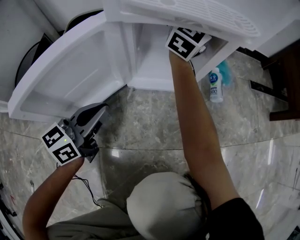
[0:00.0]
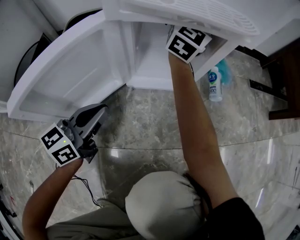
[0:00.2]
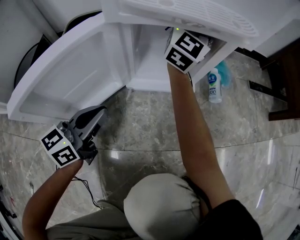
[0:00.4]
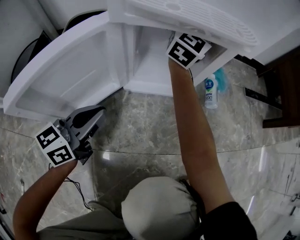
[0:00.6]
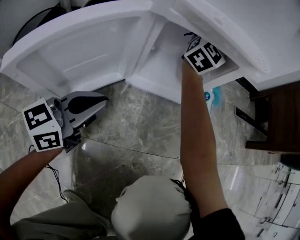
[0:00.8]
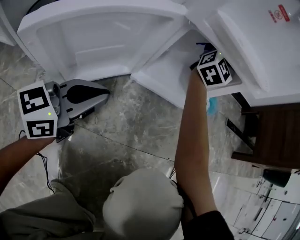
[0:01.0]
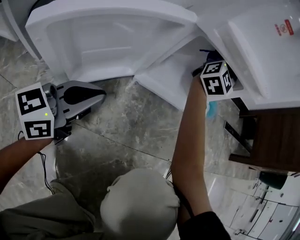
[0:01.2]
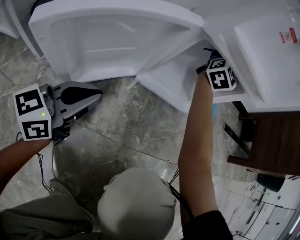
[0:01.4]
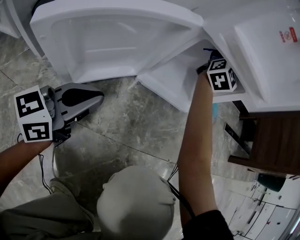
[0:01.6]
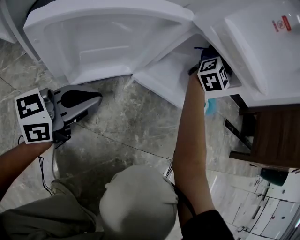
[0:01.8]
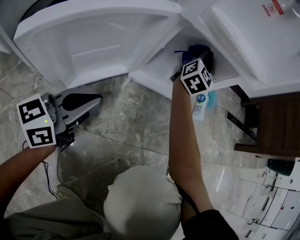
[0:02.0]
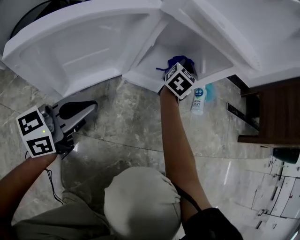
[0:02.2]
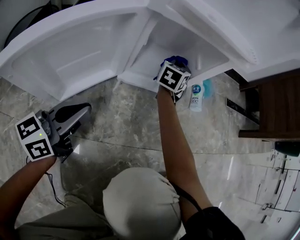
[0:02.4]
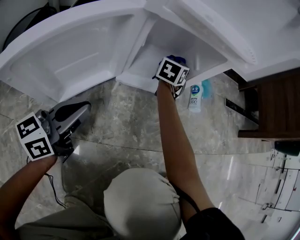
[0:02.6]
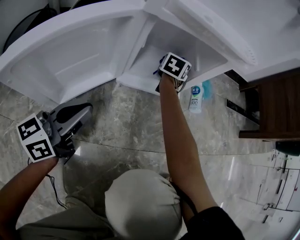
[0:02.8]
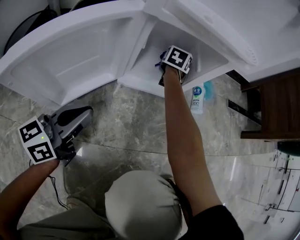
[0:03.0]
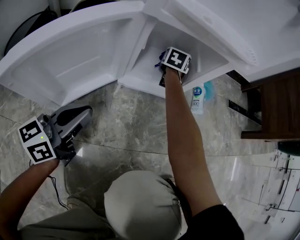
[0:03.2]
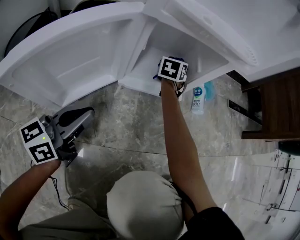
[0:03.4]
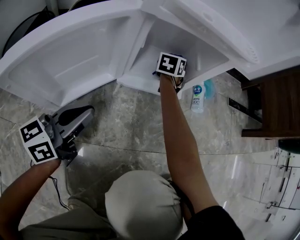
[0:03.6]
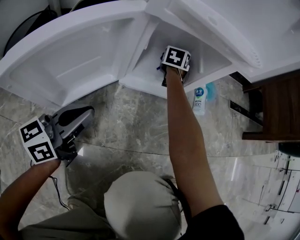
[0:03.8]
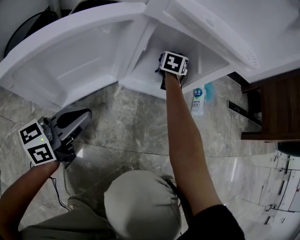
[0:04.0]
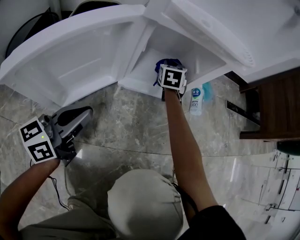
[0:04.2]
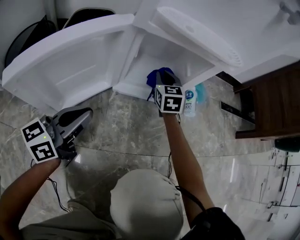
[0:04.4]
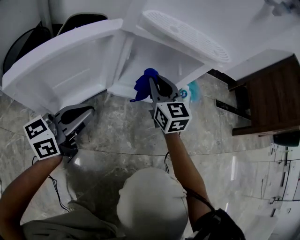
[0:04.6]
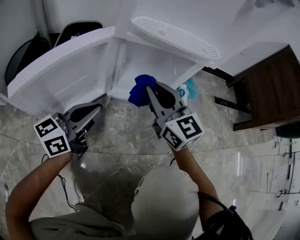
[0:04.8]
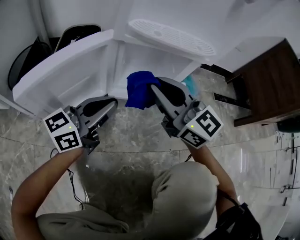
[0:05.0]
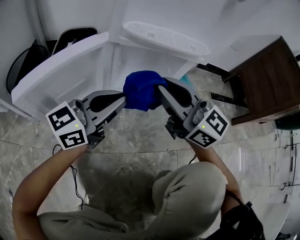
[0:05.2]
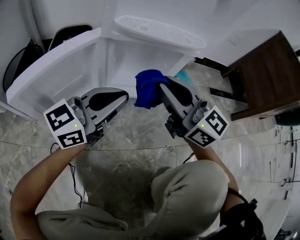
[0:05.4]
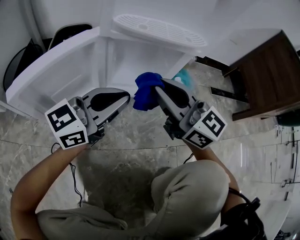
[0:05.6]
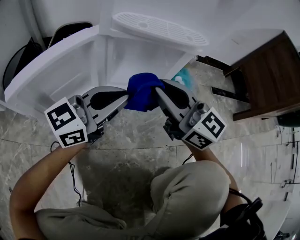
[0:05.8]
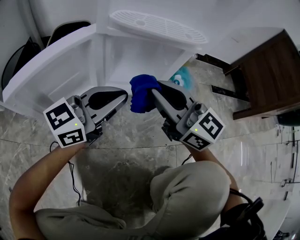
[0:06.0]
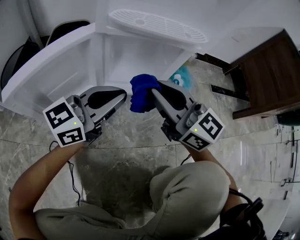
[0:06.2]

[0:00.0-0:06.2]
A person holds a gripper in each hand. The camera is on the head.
0:00.0 to 0:01.6: The left gripper is displaced backward by approximately 5 cm.
0:01.6 to 0:03.2: The right gripper moves downward, some 25 cm, and points its fingers about 50 degrees further downward.
0:03.2 to 0:04.6: The right gripper travels backward and upward by roughly 20 cm, and changes its angle by about 40 degrees.
0:04.6 to 0:06.2: The left gripper shifts about 15 cm to the right and upward. Meanwhile the right gripper travels upward and backward by approximately 20 cm, and turns by some 30 degrees.

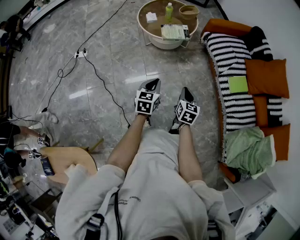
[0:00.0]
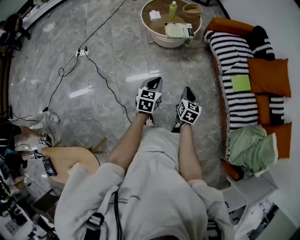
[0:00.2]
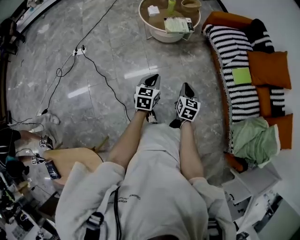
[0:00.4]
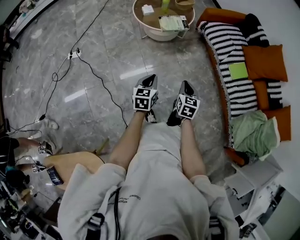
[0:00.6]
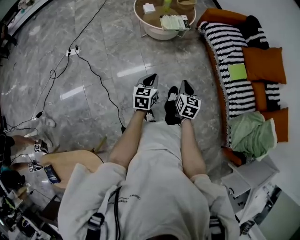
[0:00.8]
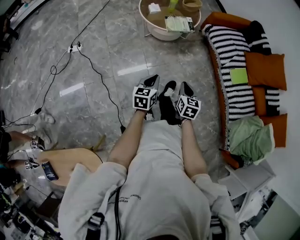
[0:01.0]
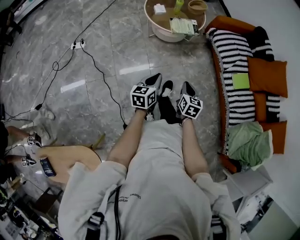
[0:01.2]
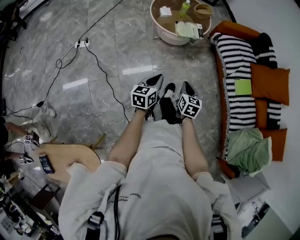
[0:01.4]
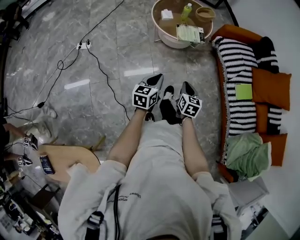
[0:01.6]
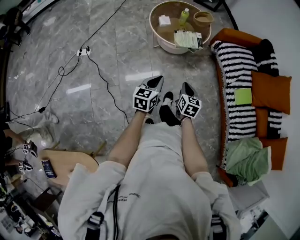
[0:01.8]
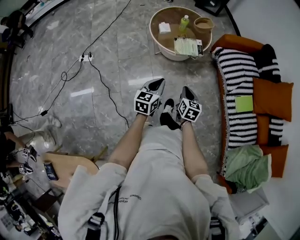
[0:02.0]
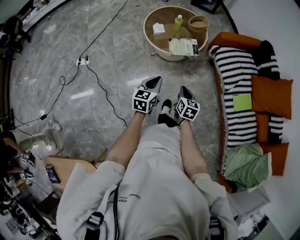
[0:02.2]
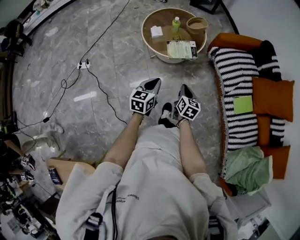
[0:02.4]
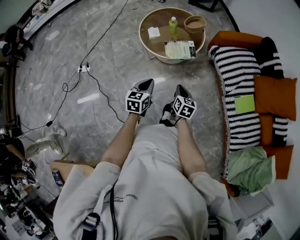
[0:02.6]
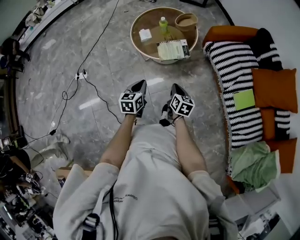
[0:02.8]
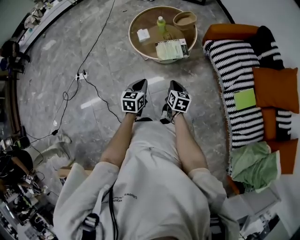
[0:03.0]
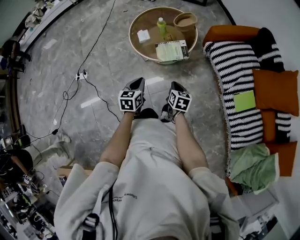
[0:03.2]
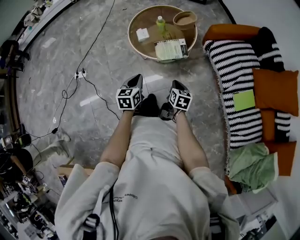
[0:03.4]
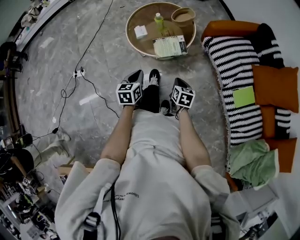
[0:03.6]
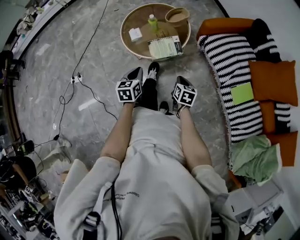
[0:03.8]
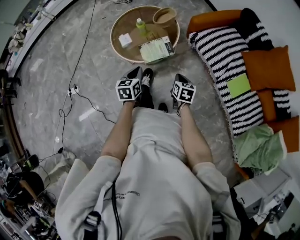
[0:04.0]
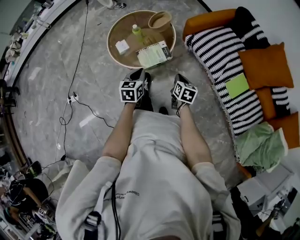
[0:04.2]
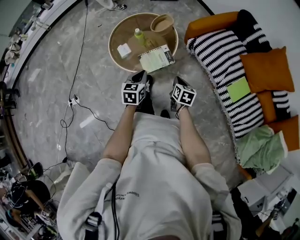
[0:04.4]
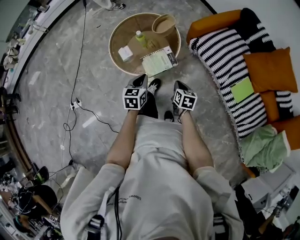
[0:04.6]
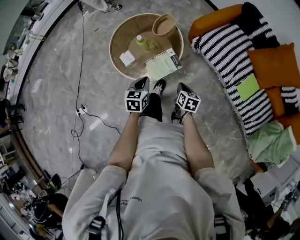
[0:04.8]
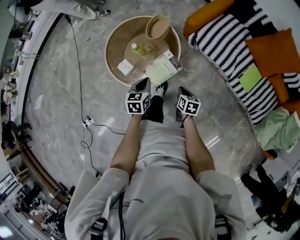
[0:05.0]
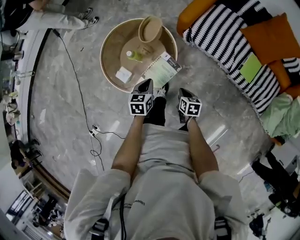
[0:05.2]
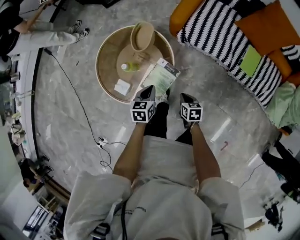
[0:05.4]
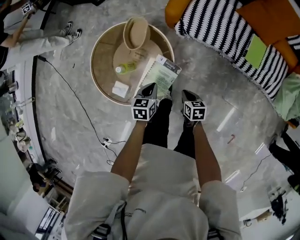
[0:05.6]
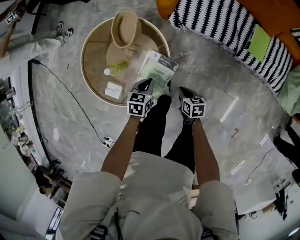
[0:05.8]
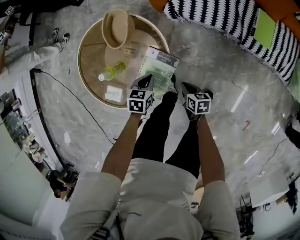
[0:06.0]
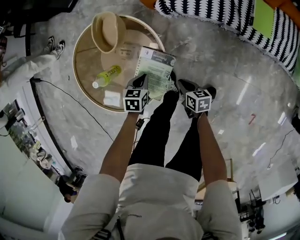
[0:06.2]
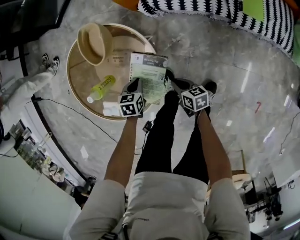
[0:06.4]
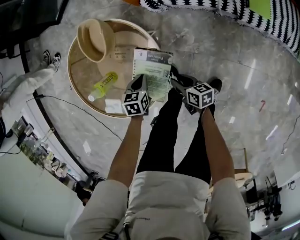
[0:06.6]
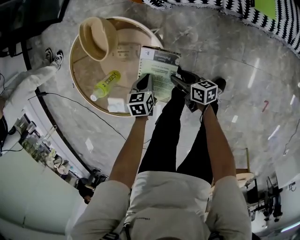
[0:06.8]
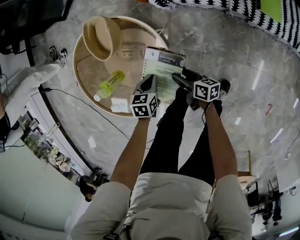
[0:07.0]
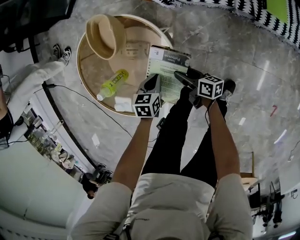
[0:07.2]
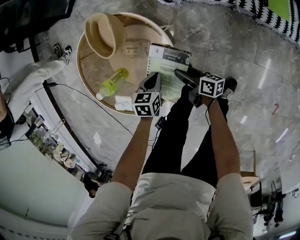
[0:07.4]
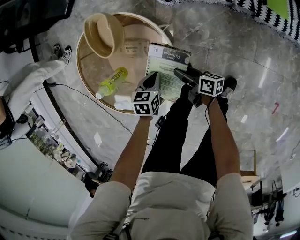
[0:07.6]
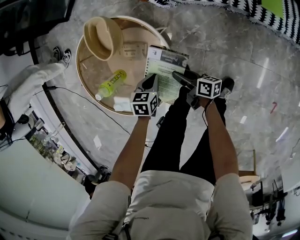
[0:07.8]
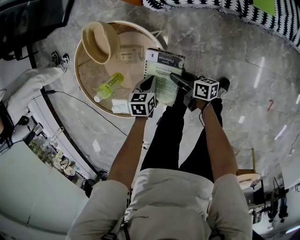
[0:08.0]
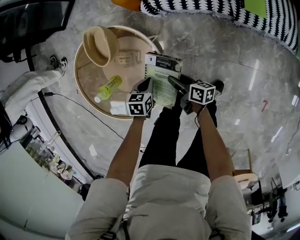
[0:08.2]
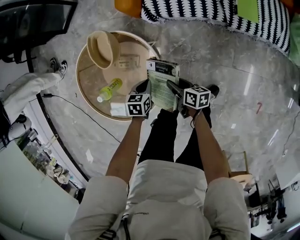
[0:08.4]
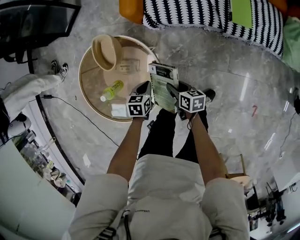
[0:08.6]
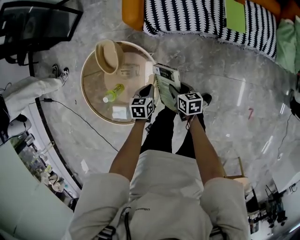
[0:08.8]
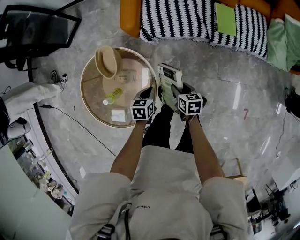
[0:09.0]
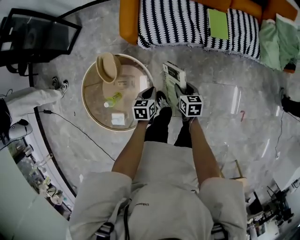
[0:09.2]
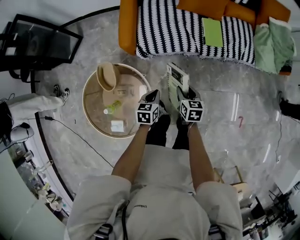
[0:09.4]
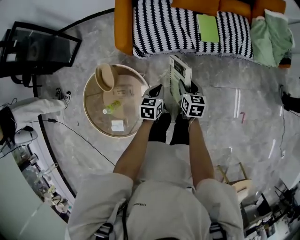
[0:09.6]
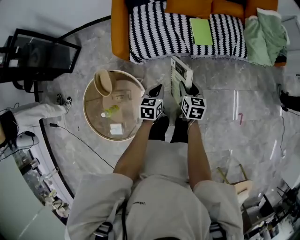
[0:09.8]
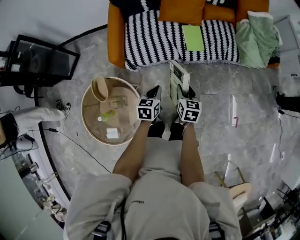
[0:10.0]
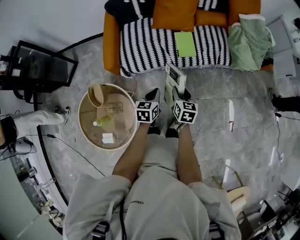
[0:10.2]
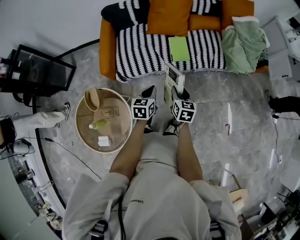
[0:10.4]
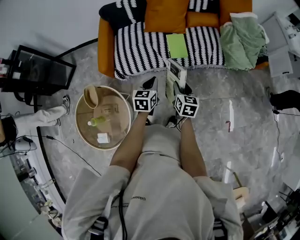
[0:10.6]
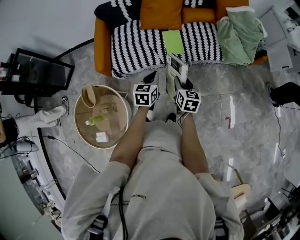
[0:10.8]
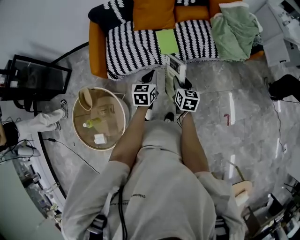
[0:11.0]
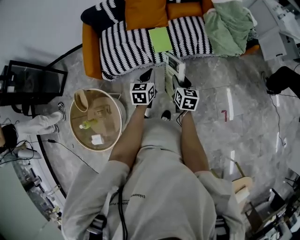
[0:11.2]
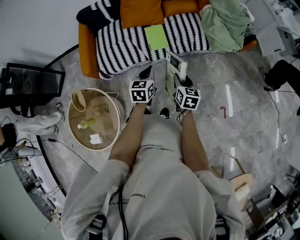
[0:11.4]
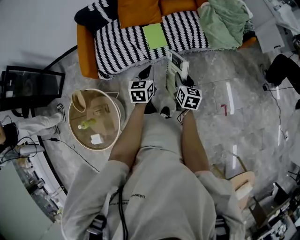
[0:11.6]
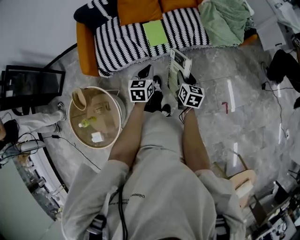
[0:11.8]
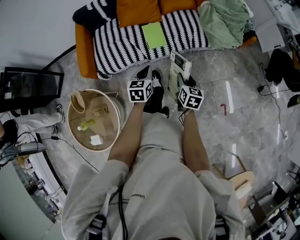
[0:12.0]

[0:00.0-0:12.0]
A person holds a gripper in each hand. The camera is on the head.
0:00.0 to 0:01.6: Both grippers move to the left, roughly 15 cm.
0:01.6 to 0:03.0: The two grippers go approximately 20 cm forward.
0:03.0 to 0:04.4: The left gripper travels forward by approximately 15 cm, while the right gripper heads forward and to the right, covering some 15 cm.
0:04.4 to 0:06.0: Both grippers move downward, approximately 25 cm. The left gripper changes its angle by about 50 degrees, while the right gripper swivels about 30 degrees.
0:06.0 to 0:07.6: The right gripper heads forward and to the left, covering some 10 cm, angles its fingers upward, by about 30 degrees, and opens, while the left gripper shifts about 5 cm downward.
0:07.6 to 0:09.0: The grippers both shift upward and to the right by some 15 cm. The right gripper points its fingers some 30 degrees further downward.
0:09.0 to 0:10.4: Both grippers travel together to the right, upward and forward, about 35 cm. The left gripper turns by some 20 degrees, while the right gripper turns by some 30 degrees.
0:10.4 to 0:12.0: The right gripper travels to the right by approximately 20 cm, while the left gripper moves to the right and forward, about 15 cm.

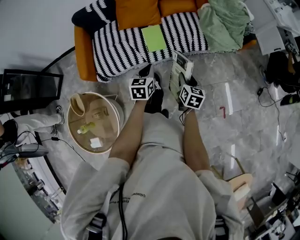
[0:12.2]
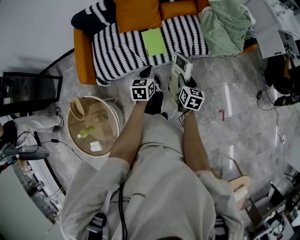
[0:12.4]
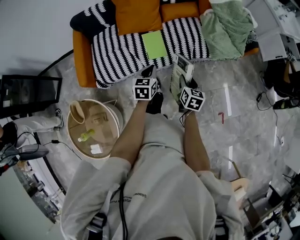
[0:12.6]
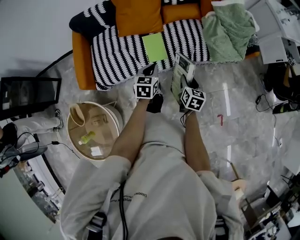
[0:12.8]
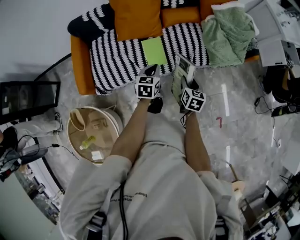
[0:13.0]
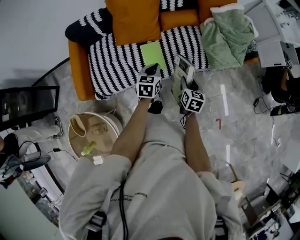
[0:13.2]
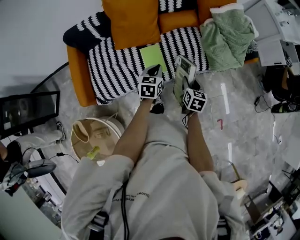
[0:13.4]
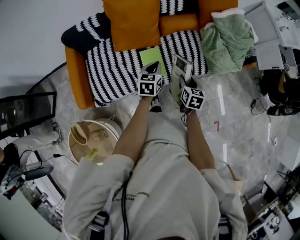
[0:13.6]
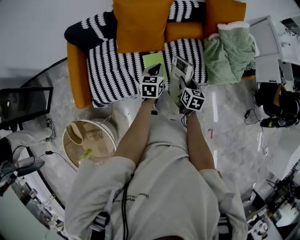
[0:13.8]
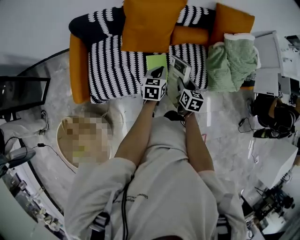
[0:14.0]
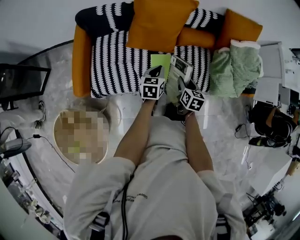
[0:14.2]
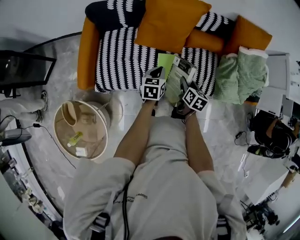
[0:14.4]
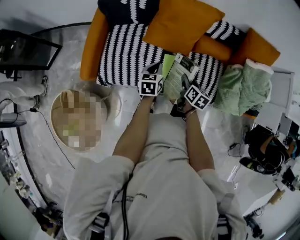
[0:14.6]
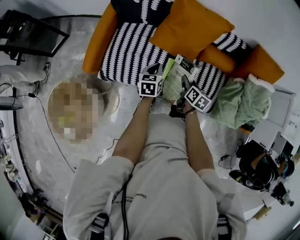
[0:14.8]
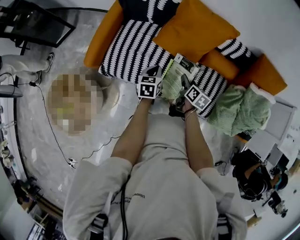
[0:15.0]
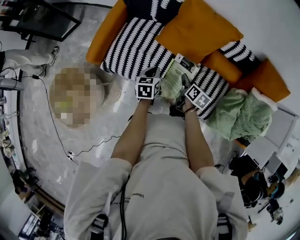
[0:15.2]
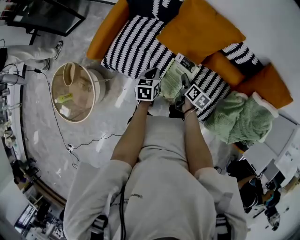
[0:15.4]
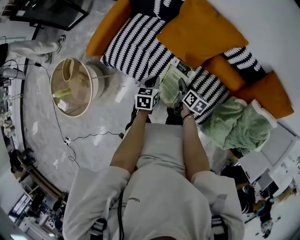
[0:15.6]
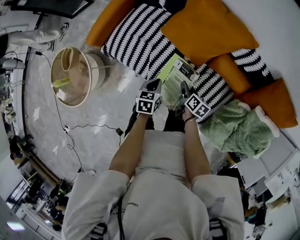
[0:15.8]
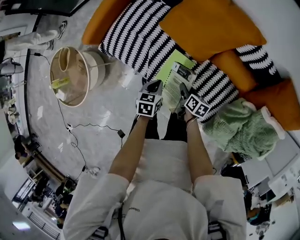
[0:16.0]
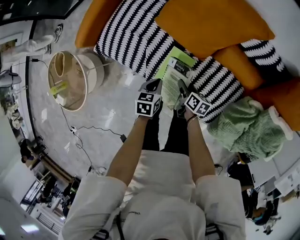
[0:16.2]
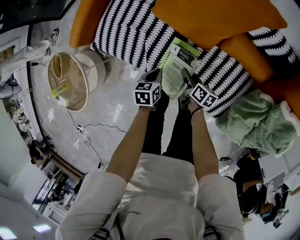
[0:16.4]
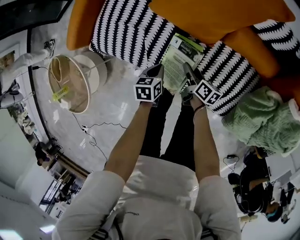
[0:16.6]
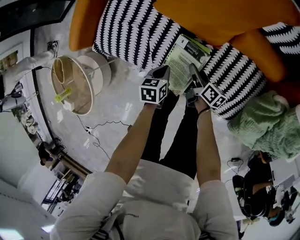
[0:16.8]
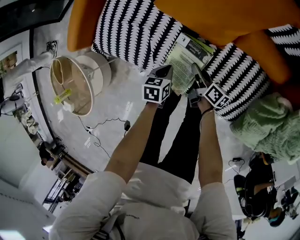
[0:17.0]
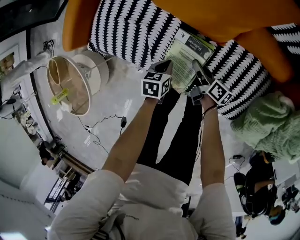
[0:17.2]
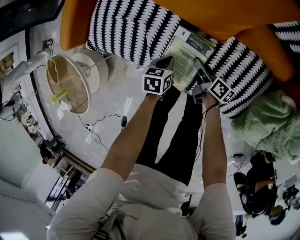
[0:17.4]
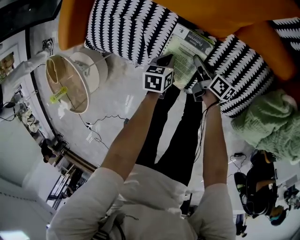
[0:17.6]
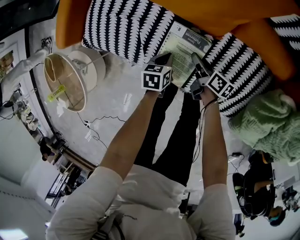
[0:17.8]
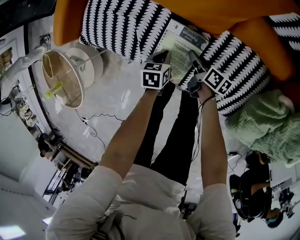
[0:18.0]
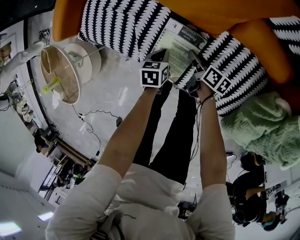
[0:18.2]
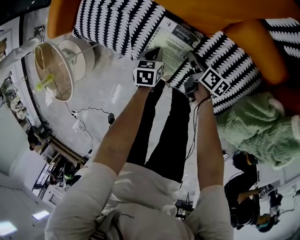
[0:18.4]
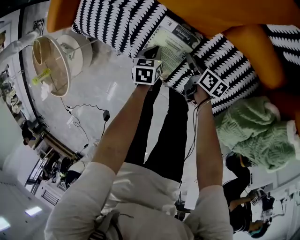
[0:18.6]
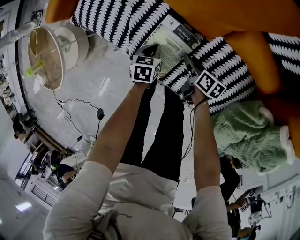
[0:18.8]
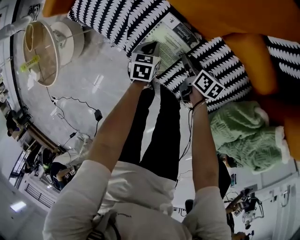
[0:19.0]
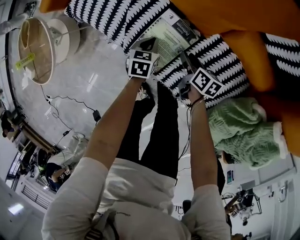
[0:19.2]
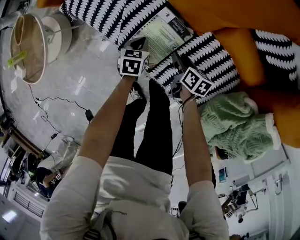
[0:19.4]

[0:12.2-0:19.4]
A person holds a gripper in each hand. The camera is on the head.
0:12.2 to 0:13.6: Both grippers move forward, about 25 cm.
0:13.6 to 0:15.0: The right gripper shifts by approximately 20 cm, and swivels roughly 30 degrees; the left gripper shifts by approximately 15 cm, and rotates roughly 40 degrees.
0:15.0 to 0:16.6: Both grippers move downward, some 25 cm. The right gripper changes its angle by roughly 30 degrees, while the left gripper swivels about 20 degrees.
0:16.6 to 0:18.0: The two grippers go approximately 10 cm downward.
0:18.0 to 0:19.4: The right gripper turns by about 30 degrees.
